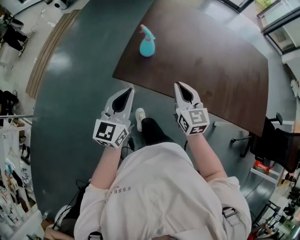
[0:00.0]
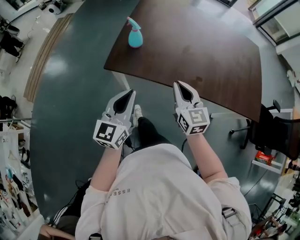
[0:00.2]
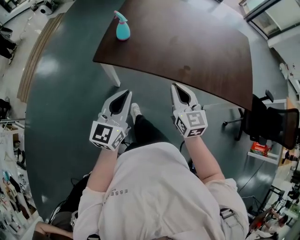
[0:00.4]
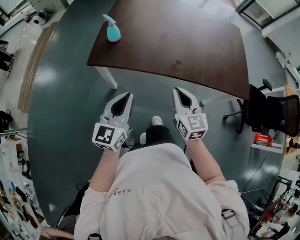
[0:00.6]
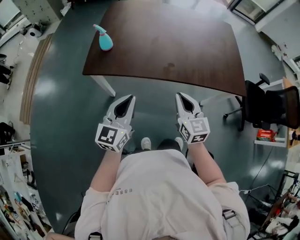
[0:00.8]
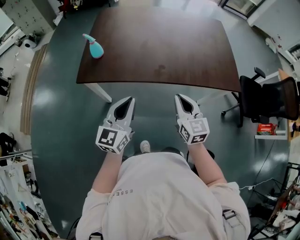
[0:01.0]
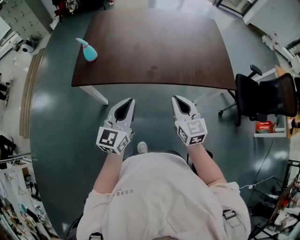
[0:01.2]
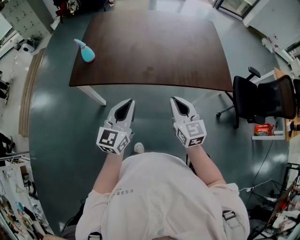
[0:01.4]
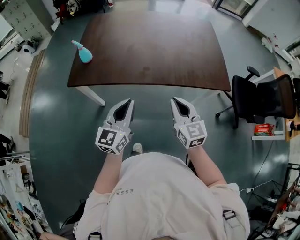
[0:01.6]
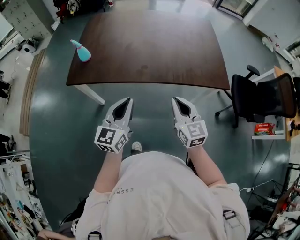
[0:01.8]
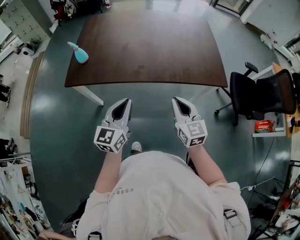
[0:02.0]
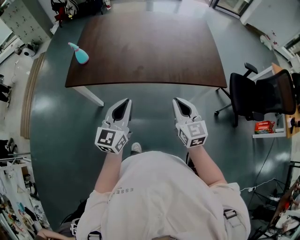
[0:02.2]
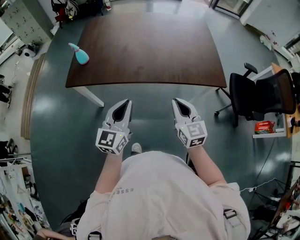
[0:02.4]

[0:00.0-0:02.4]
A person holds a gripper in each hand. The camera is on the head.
0:00.0 to 0:01.2: Both grippers travel together to the right and backward, about 30 cm.
0:01.2 to 0:02.4: Both grippers travel together to the right, roughly 10 cm.

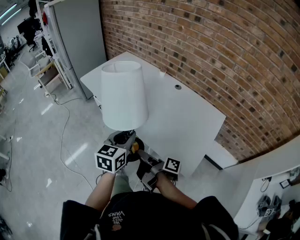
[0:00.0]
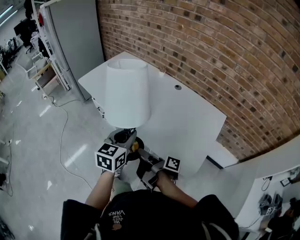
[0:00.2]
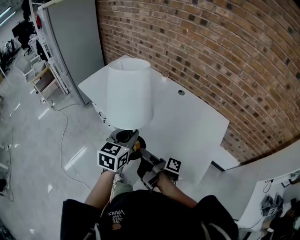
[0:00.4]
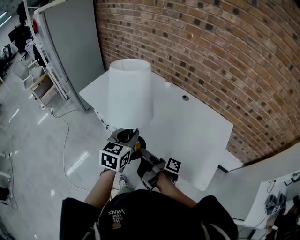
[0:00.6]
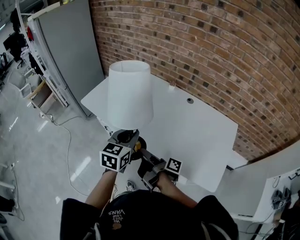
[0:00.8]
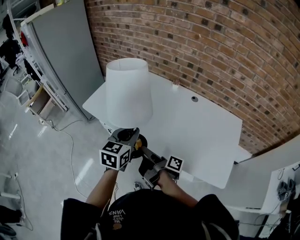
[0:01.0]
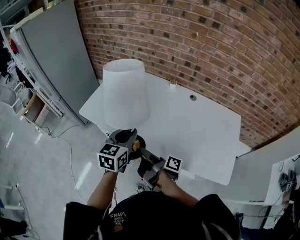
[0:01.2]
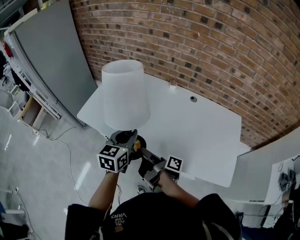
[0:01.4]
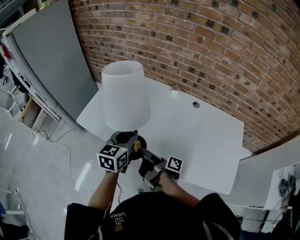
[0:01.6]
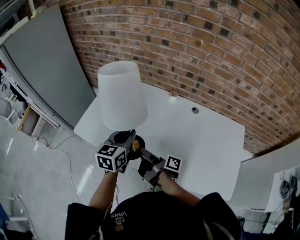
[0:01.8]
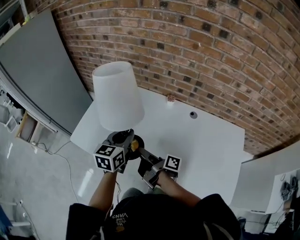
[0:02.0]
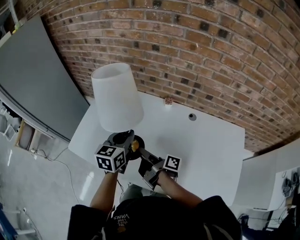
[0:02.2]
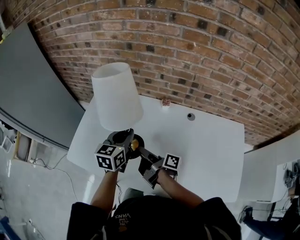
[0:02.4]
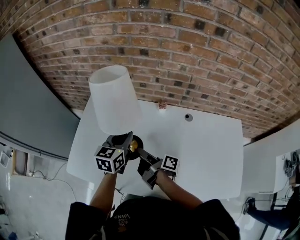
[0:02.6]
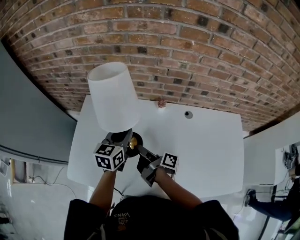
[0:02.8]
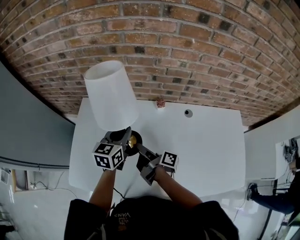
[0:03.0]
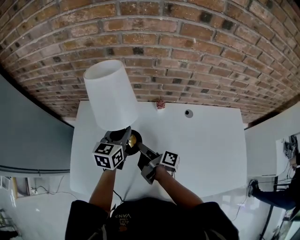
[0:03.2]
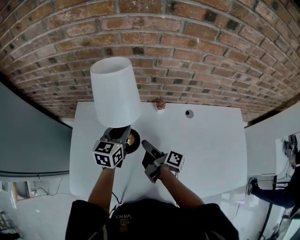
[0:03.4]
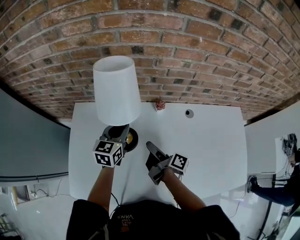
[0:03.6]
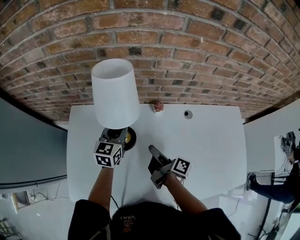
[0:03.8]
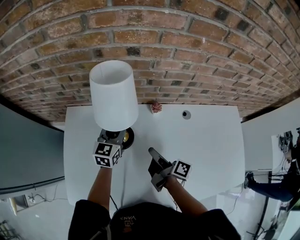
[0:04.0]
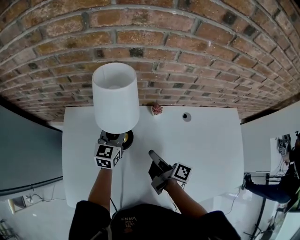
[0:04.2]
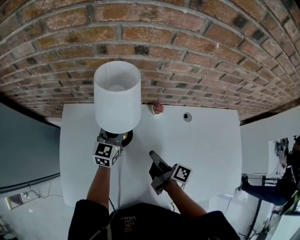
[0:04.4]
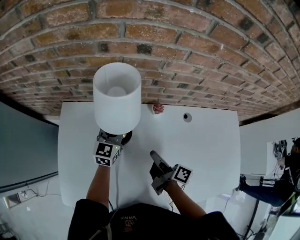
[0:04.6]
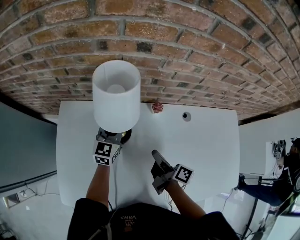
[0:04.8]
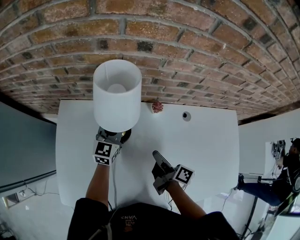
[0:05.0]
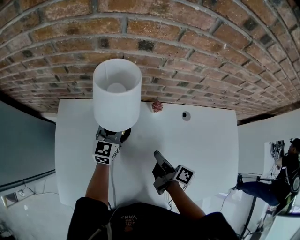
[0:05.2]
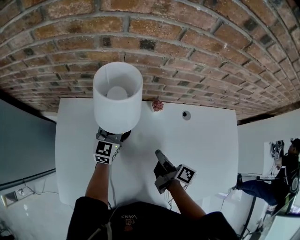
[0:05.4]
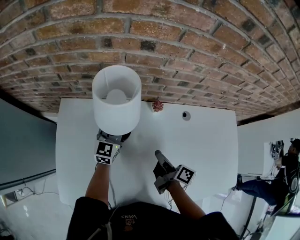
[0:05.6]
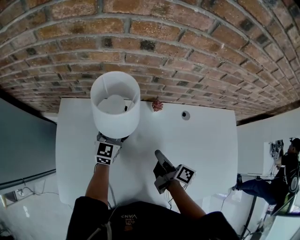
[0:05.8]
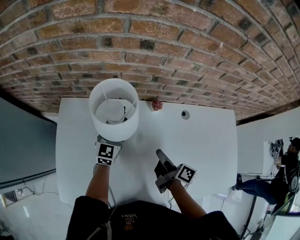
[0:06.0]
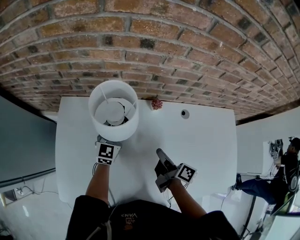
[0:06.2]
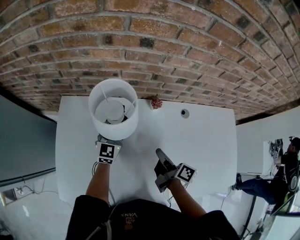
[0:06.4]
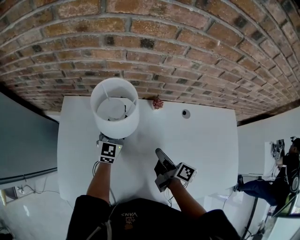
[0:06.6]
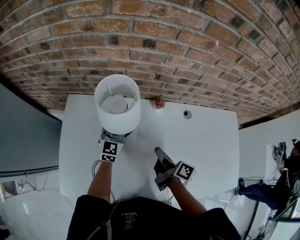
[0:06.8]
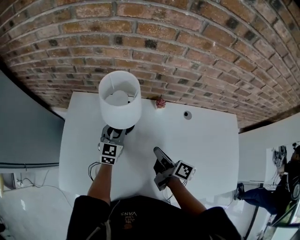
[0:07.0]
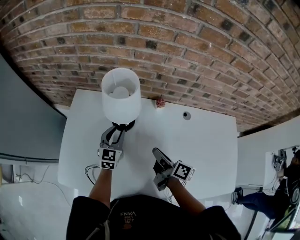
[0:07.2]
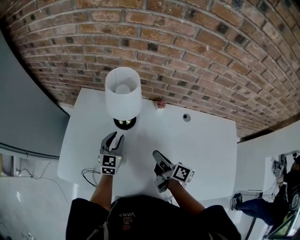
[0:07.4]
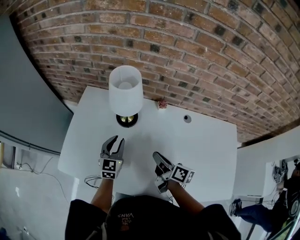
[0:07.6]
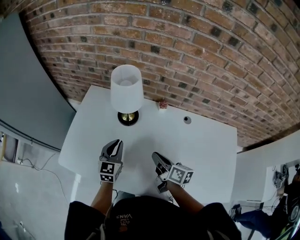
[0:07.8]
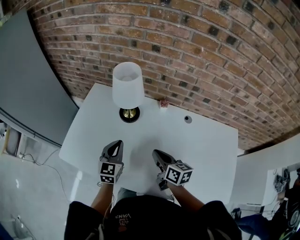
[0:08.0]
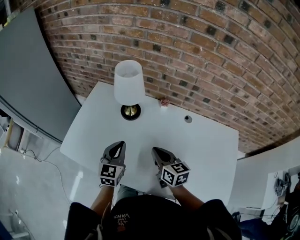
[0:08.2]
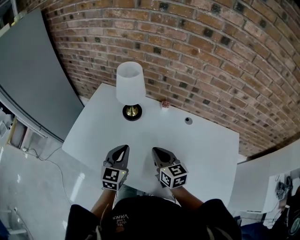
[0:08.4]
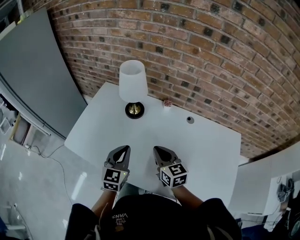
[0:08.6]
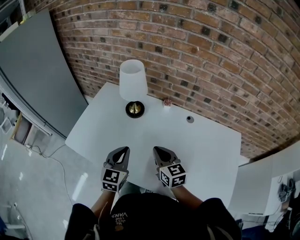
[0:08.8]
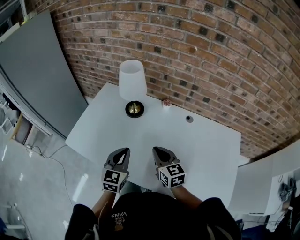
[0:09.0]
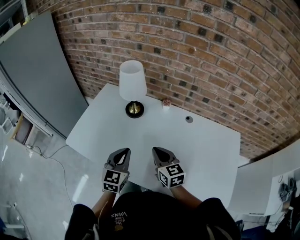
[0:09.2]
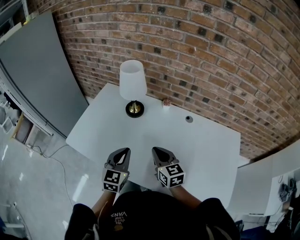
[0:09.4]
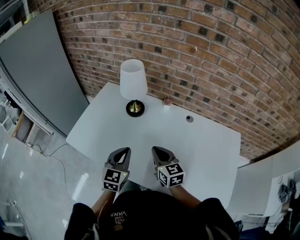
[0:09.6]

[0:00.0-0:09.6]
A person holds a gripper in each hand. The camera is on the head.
0:00.0 to 0:01.6: The left gripper ends up roughly 40 cm from where it was.
0:01.6 to 0:03.2: The left gripper moves about 35 cm, and rotates approximately 20 degrees.
0:03.2 to 0:04.8: The left gripper changes place by some 15 cm.
0:06.4 to 0:08.0: The left gripper changes place by roughly 25 cm, and turns by some 20 degrees.
0:08.0 to 0:09.6: The left gripper changes place by about 15 cm.

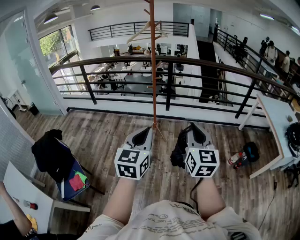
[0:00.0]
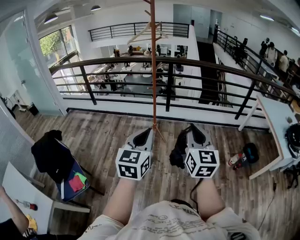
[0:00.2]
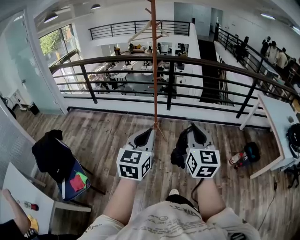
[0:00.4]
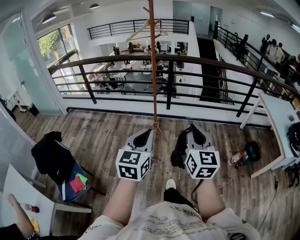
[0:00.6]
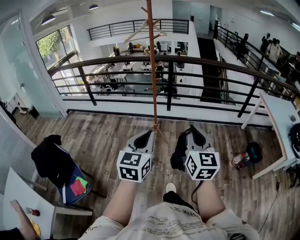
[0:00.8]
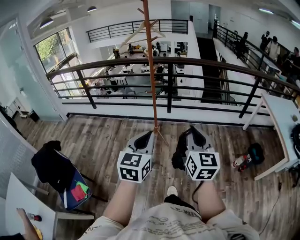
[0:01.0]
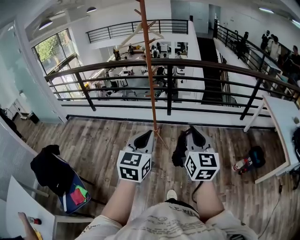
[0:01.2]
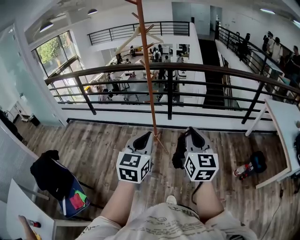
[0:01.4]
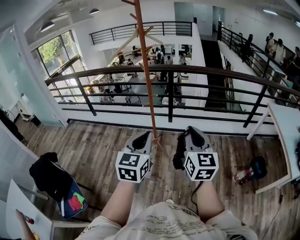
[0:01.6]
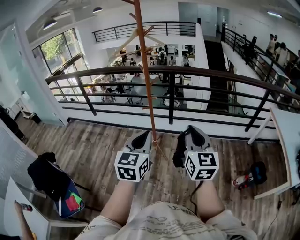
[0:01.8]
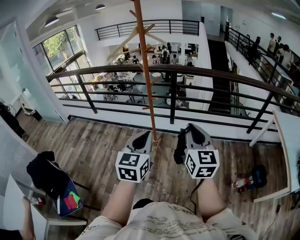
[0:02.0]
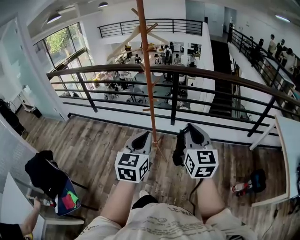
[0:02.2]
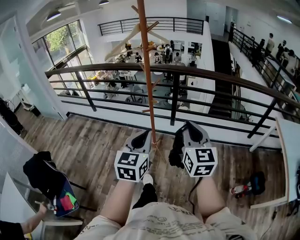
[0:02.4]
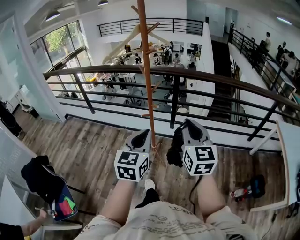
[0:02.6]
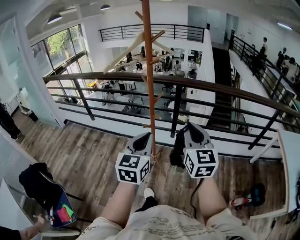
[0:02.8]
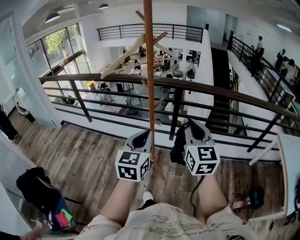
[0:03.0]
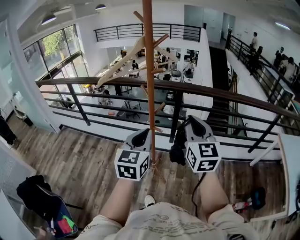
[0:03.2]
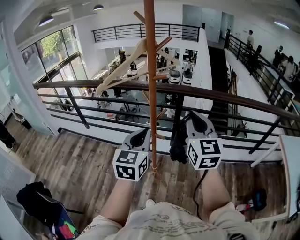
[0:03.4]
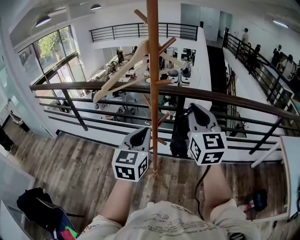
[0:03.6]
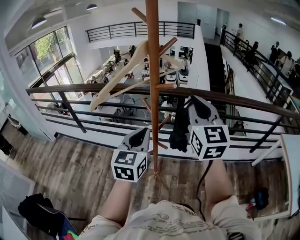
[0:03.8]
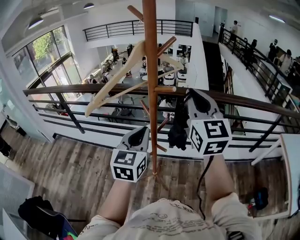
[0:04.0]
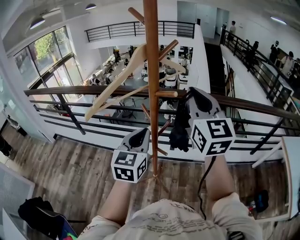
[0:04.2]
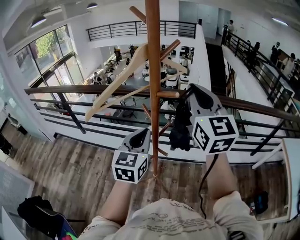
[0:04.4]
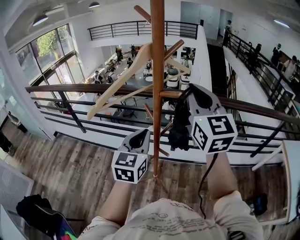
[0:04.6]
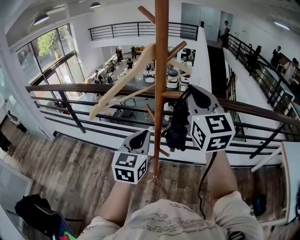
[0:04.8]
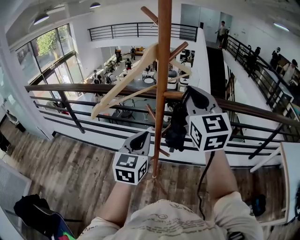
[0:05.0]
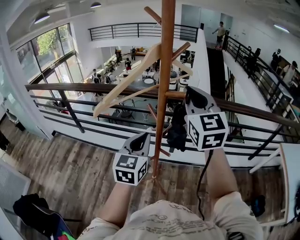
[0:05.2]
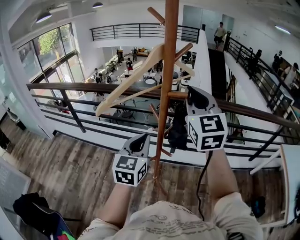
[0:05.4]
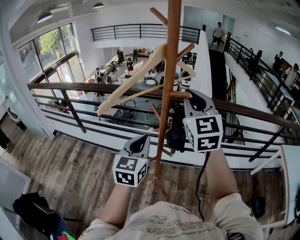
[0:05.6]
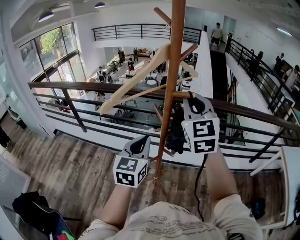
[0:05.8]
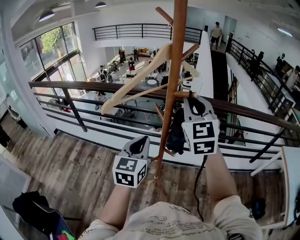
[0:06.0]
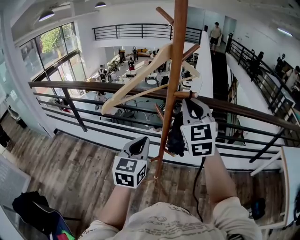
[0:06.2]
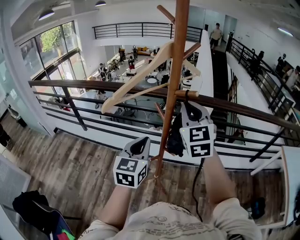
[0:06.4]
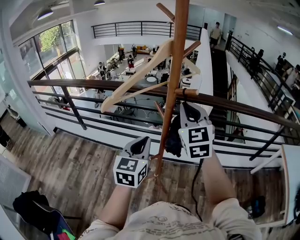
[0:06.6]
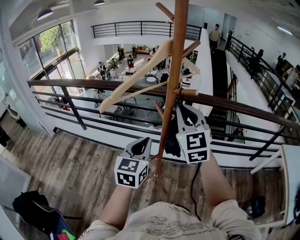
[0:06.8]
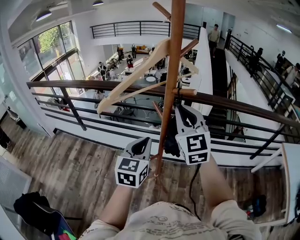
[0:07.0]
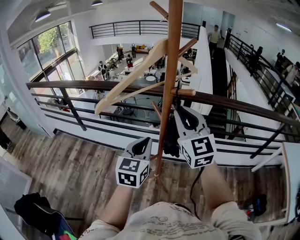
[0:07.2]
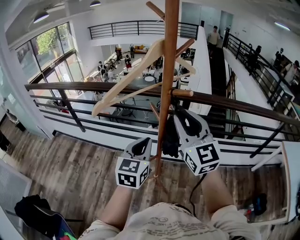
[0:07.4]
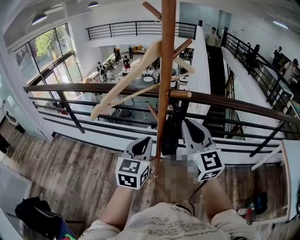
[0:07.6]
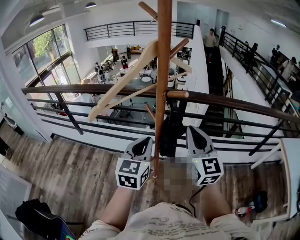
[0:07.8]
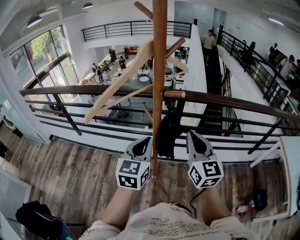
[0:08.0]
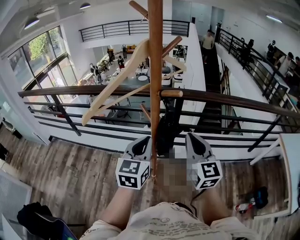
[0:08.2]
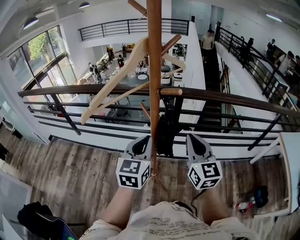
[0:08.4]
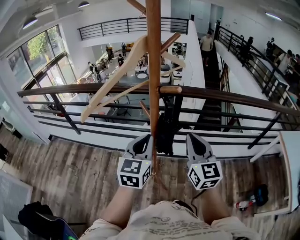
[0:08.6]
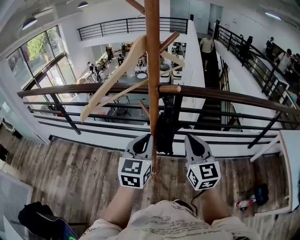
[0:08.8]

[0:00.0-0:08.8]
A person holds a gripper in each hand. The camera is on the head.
0:00.0 to 0:01.4: Both grippers move forward, roughly 20 cm.
0:01.4 to 0:03.0: Both grippers move forward, about 35 cm.
0:03.0 to 0:04.4: The right gripper travels forward and upward by approximately 30 cm. Meanwhile the left gripper is displaced forward by about 25 cm.
0:04.4 to 0:05.8: The right gripper shifts some 5 cm to the left, while the left gripper moves roughly 5 cm.
0:05.8 to 0:07.4: The right gripper goes some 5 cm downward.
0:07.4 to 0:08.8: The right gripper shifts approximately 15 cm downward and to the right.

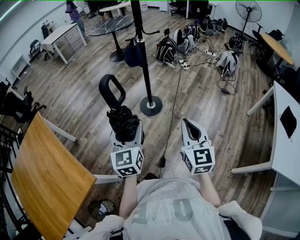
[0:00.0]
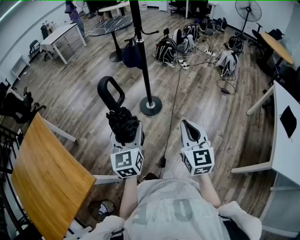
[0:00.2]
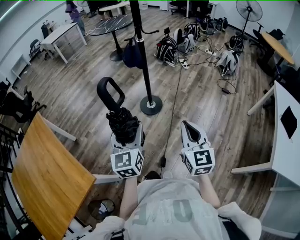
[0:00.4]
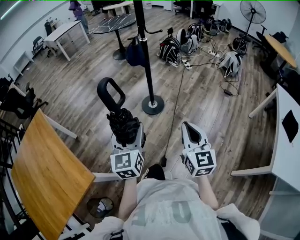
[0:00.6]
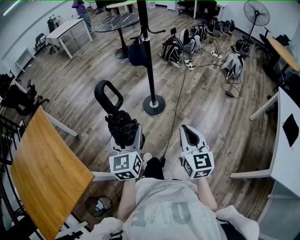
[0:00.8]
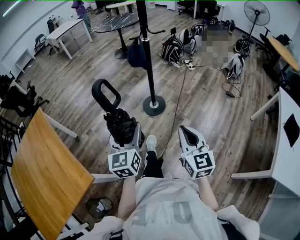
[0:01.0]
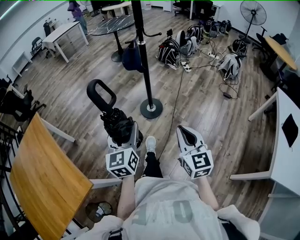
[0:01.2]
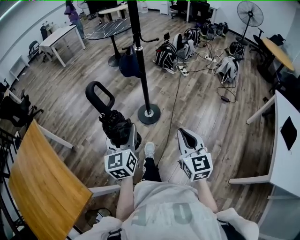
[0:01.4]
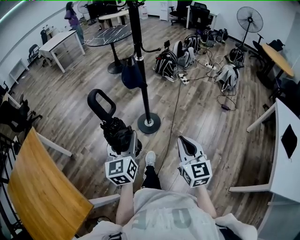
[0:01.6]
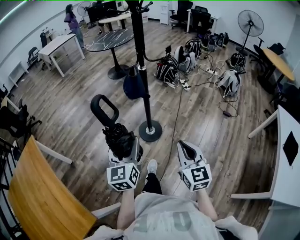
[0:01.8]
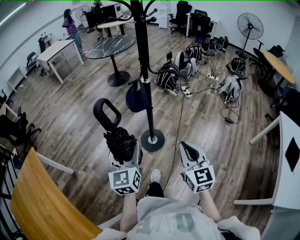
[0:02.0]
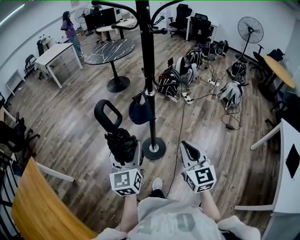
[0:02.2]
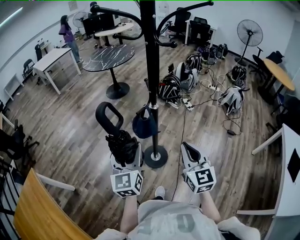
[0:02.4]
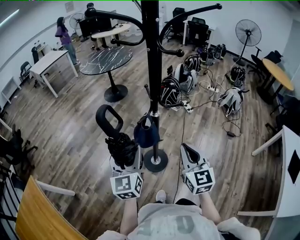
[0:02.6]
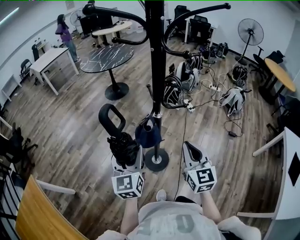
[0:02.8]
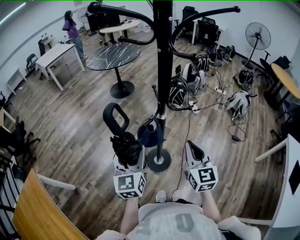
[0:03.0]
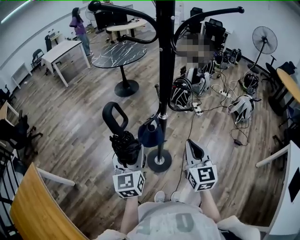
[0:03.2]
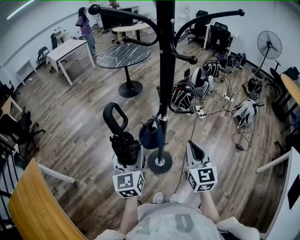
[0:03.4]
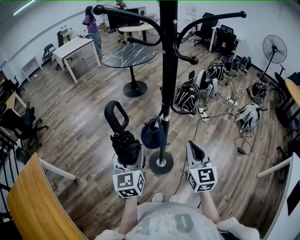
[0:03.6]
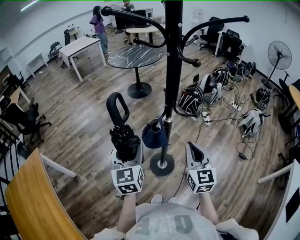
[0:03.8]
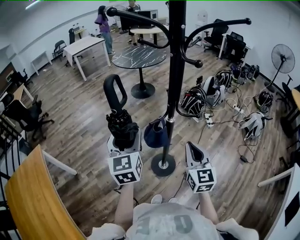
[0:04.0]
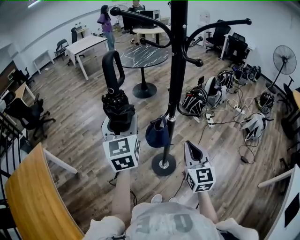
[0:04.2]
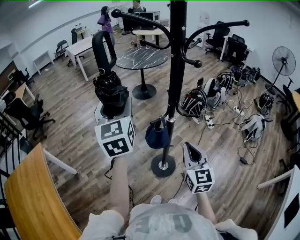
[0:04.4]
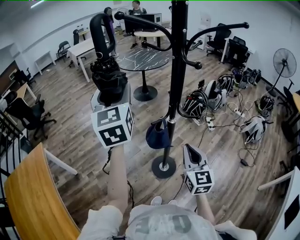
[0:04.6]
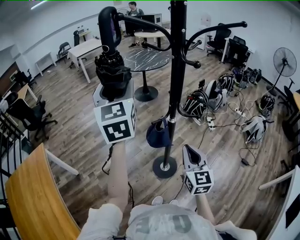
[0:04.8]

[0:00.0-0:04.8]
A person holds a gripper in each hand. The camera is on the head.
0:00.0 to 0:01.6: Both grippers travel together forward, some 10 cm.
0:01.6 to 0:03.2: Both grippers move forward, approximately 40 cm.
0:03.2 to 0:04.8: The left gripper goes approximately 25 cm upward, and turns by roughly 20 degrees.
